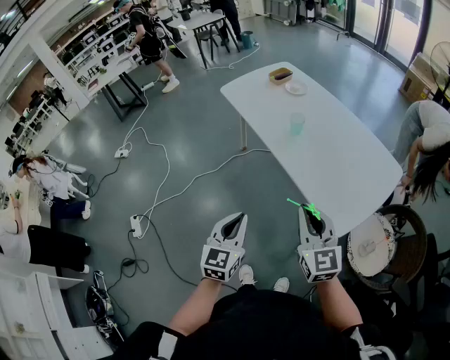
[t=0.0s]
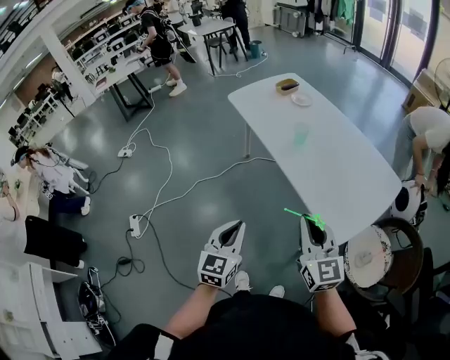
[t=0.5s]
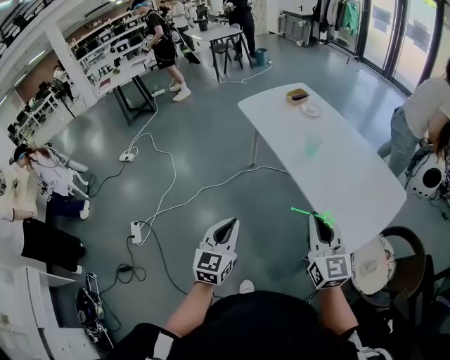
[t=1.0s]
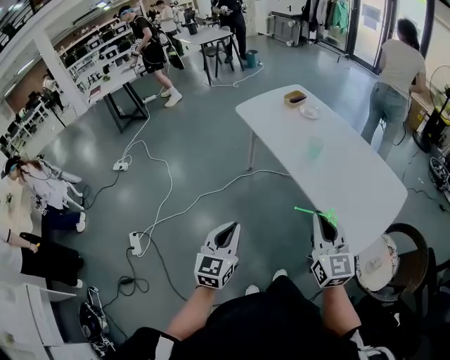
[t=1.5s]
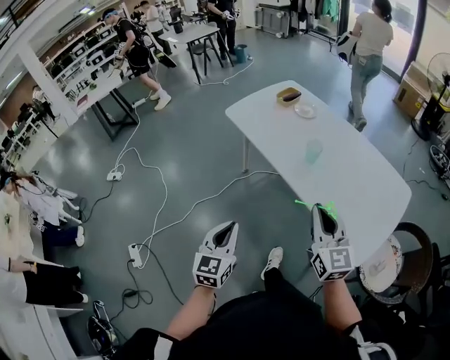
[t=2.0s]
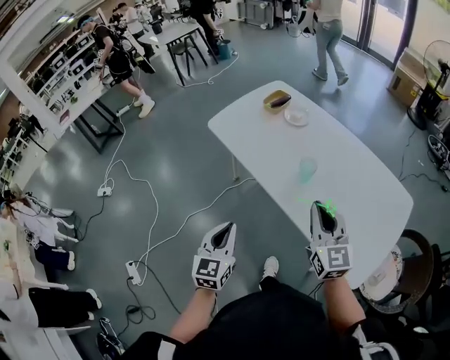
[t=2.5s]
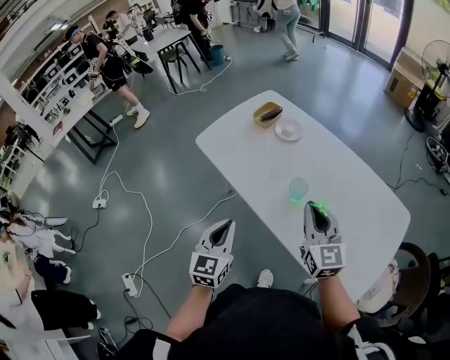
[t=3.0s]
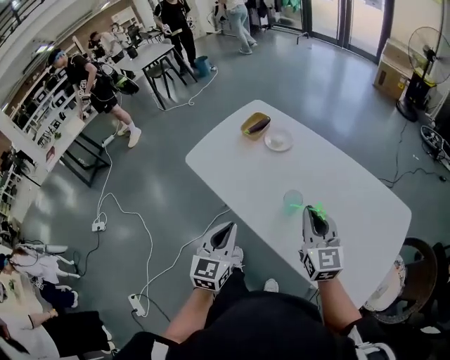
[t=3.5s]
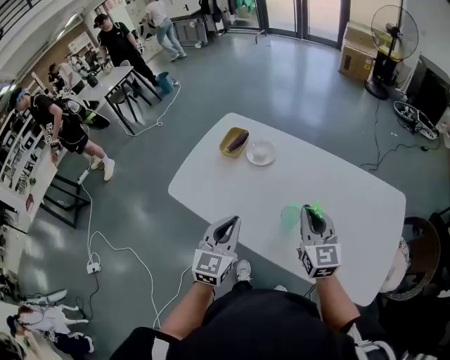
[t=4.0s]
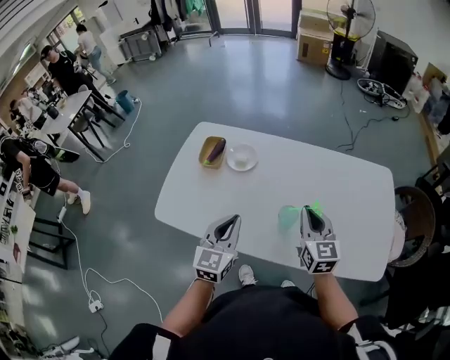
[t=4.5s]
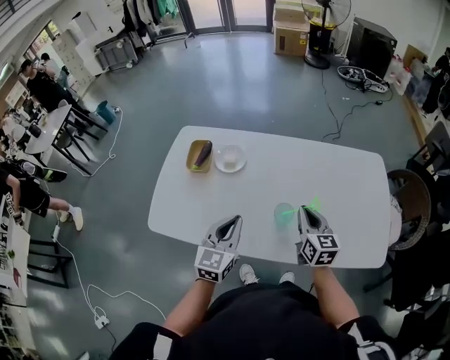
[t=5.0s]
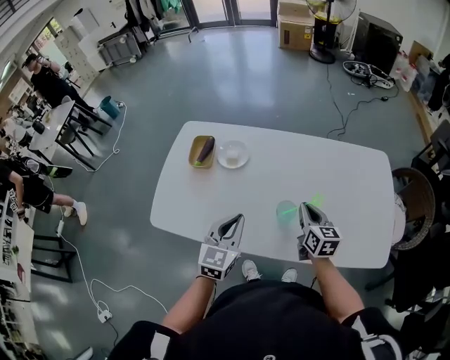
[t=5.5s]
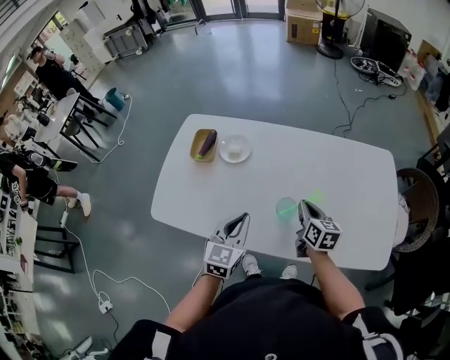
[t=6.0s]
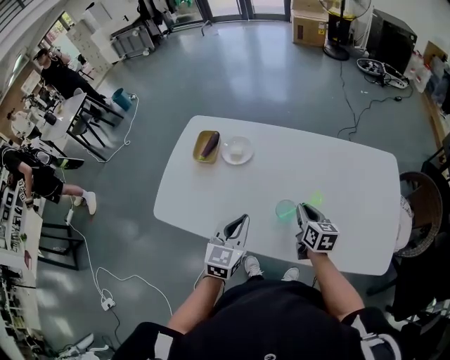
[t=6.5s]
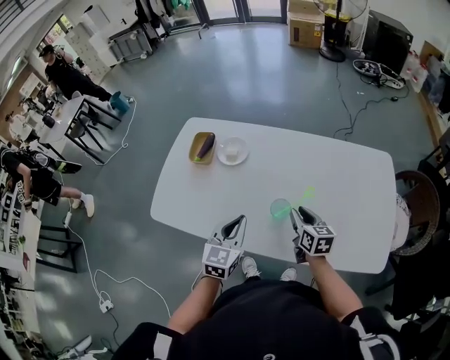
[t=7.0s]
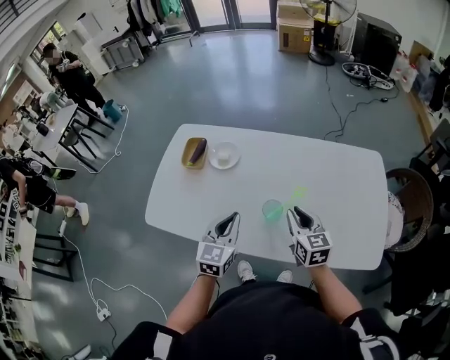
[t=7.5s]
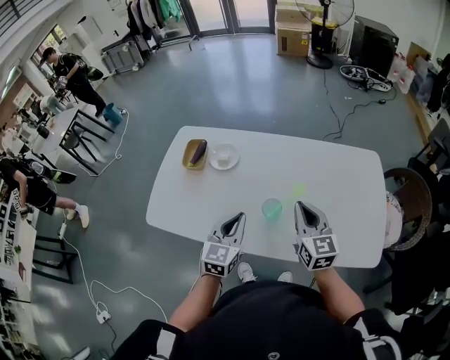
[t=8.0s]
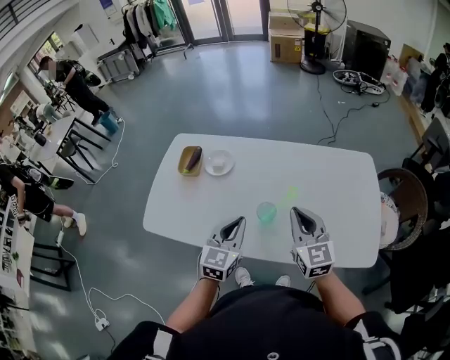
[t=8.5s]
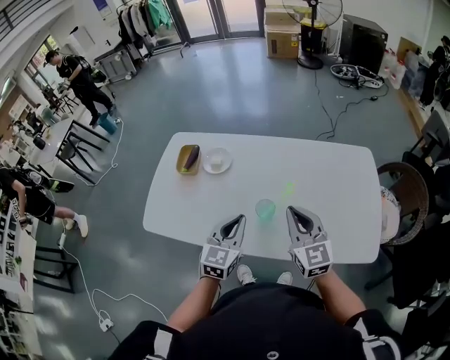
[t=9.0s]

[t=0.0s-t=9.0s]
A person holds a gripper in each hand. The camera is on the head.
t=0.0s to t=2.0s: The right gripper shifts some 15 cm forward and to the left. The left gripper travels to the left and forward by some 20 cm.
t=2.0s to t=4.5s: The left gripper changes place by roughly 50 cm, and swivels approximately 40 degrees, while the right gripper ends up some 40 cm from where it was, and turns by approximately 40 degrees.
t=4.5s to t=7.0s: The right gripper moves downward, approximately 15 cm, and swivels about 30 degrees. The left gripper shifts about 5 cm to the right.
t=7.0s to t=9.0s: The right gripper travels upward by about 15 cm, turns by about 40 degrees, and closes. Meanwhile the left gripper moves about 5 cm.

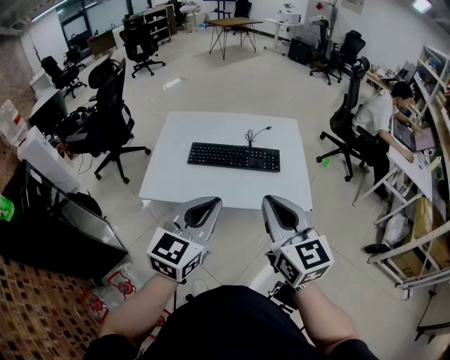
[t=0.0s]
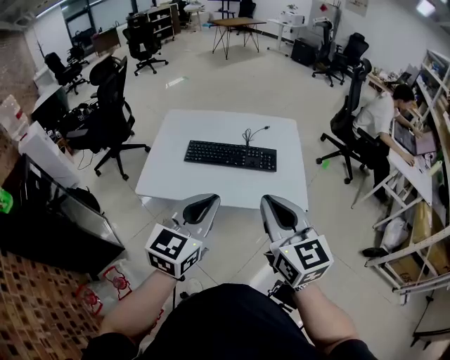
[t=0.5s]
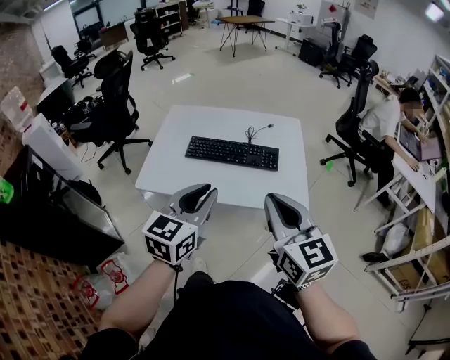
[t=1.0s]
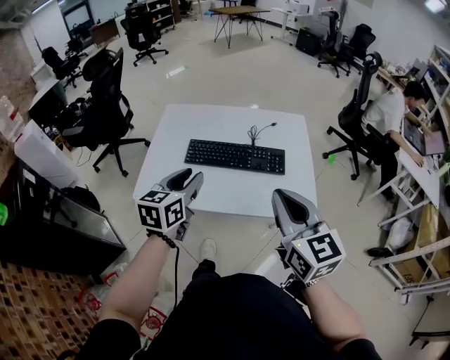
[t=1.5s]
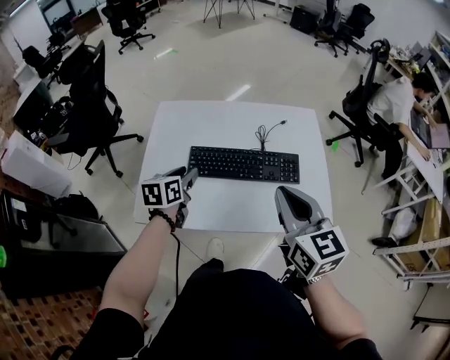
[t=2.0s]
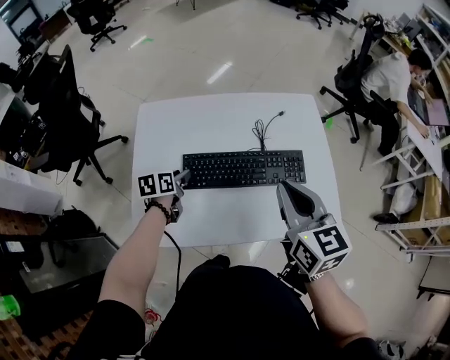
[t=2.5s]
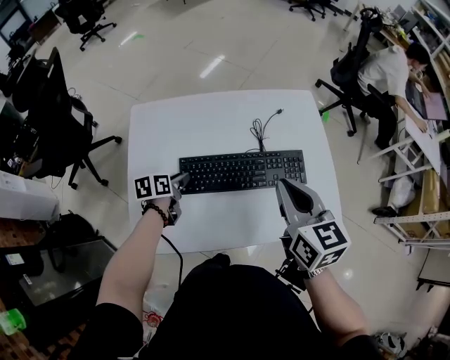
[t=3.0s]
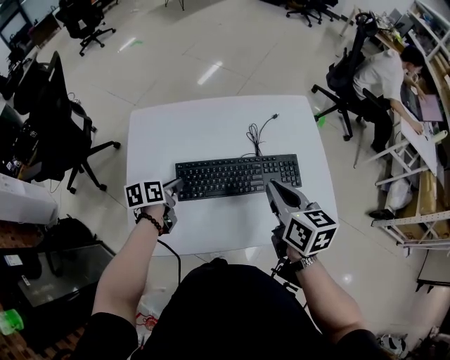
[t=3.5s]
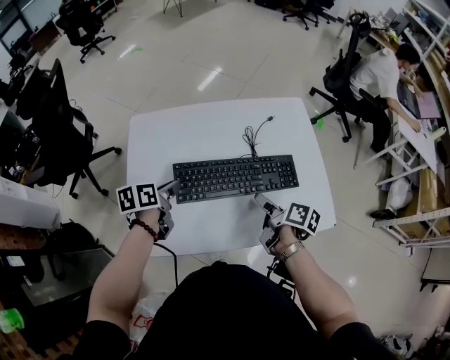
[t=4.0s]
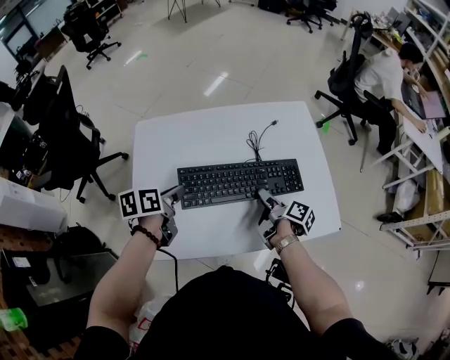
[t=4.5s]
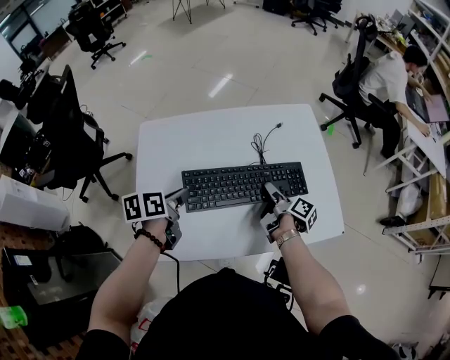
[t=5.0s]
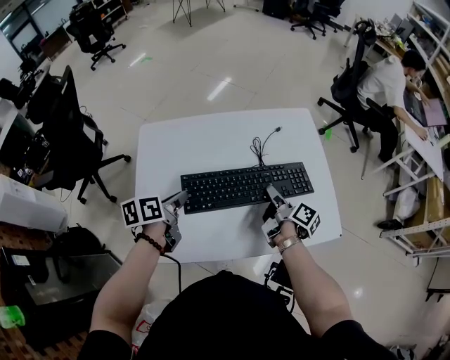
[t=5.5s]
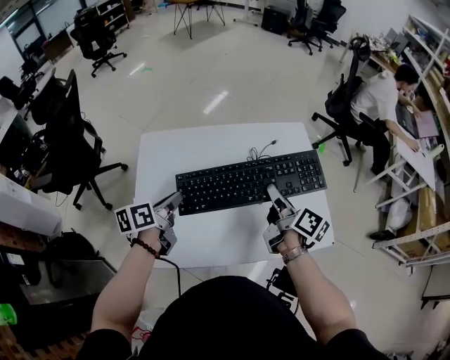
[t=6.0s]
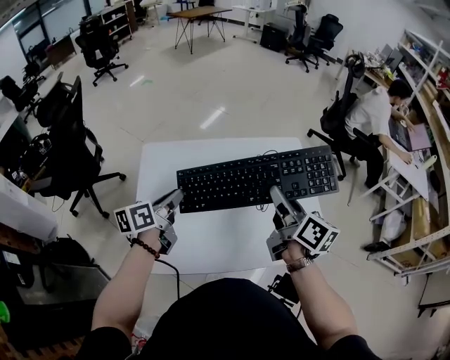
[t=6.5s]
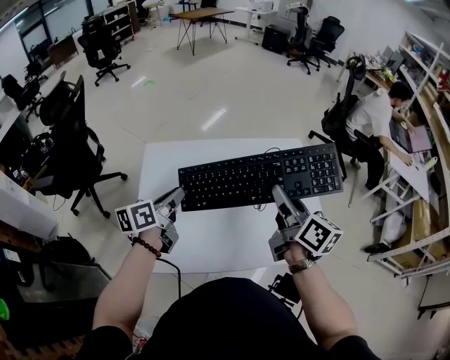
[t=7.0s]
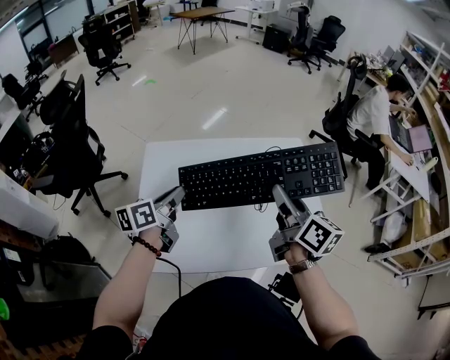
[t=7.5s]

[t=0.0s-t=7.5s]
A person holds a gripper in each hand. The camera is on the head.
t=0.0s to t=2.0s: The right gripper moves forward, approximately 20 cm, while the left gripper moves forward, downward and to the left, approximately 40 cm, swivels roughly 40 degrees, and opens.
t=2.0s to t=4.0s: The right gripper moves downward, roughly 25 cm, rolls clockwise, seen from behind, by some 60 degrees, and opens up. The left gripper is displaced forward by approximately 5 cm, travels downward and back again, some 15 cm each way, and turns by approximately 20 degrees.
t=4.0s to t=5.5s: The right gripper moves forward, roughly 5 cm.
t=5.5s to t=7.5s: The right gripper moves upward, some 25 cm, and turns by about 40 degrees; the left gripper travels upward by approximately 10 cm, and changes its angle by approximately 20 degrees.

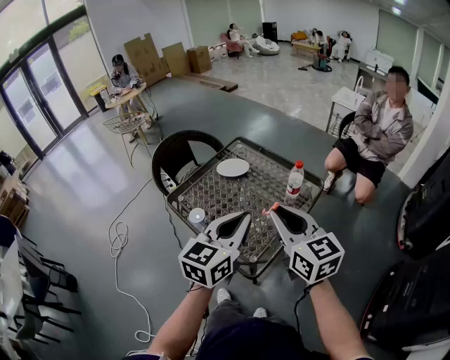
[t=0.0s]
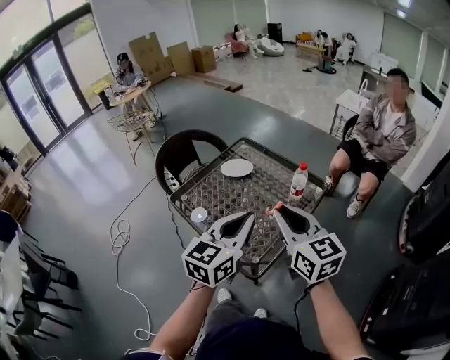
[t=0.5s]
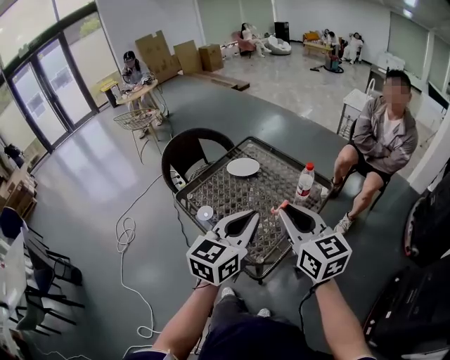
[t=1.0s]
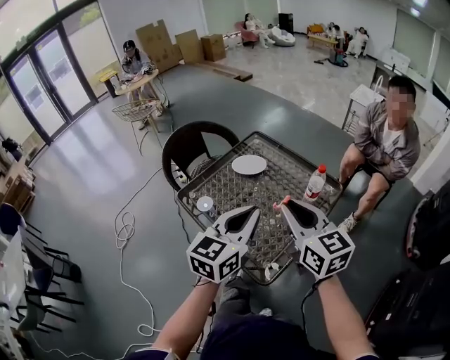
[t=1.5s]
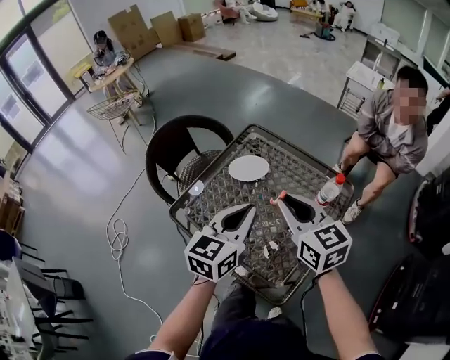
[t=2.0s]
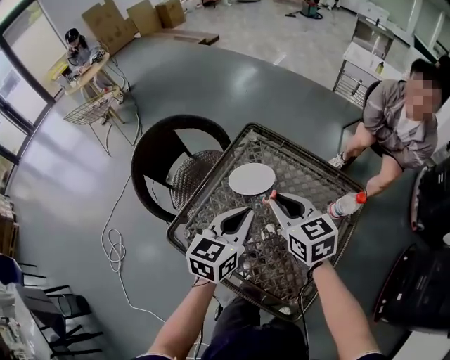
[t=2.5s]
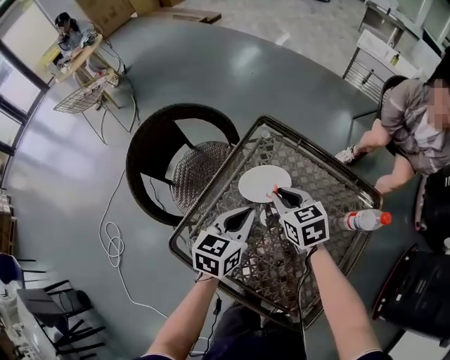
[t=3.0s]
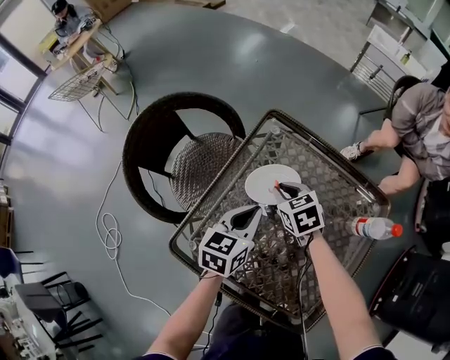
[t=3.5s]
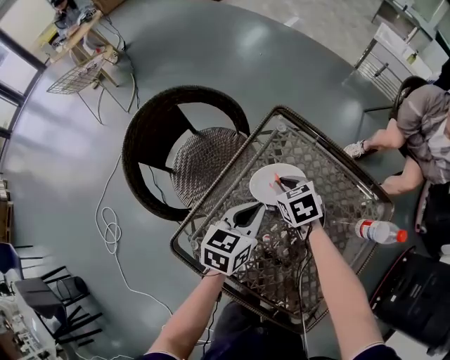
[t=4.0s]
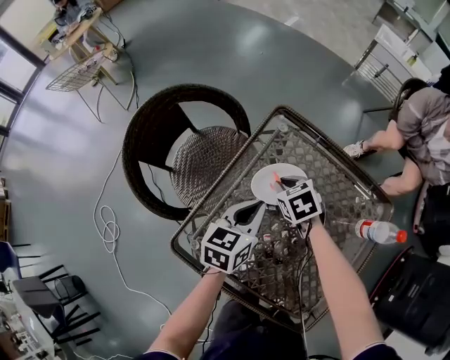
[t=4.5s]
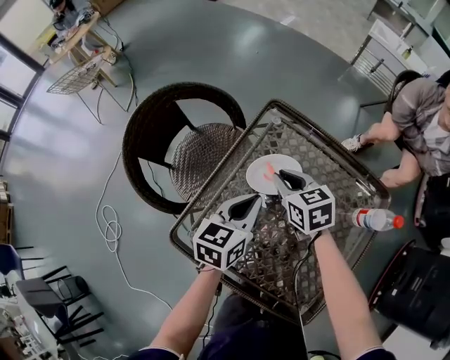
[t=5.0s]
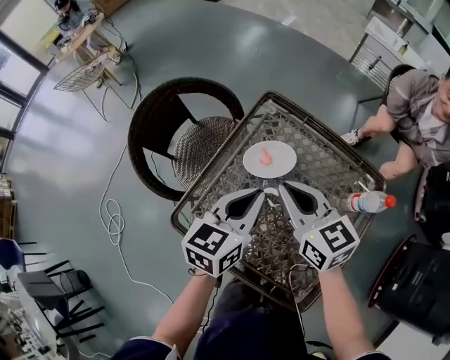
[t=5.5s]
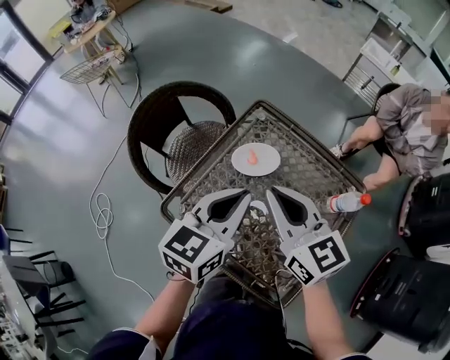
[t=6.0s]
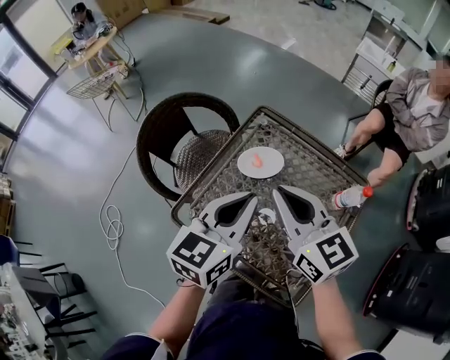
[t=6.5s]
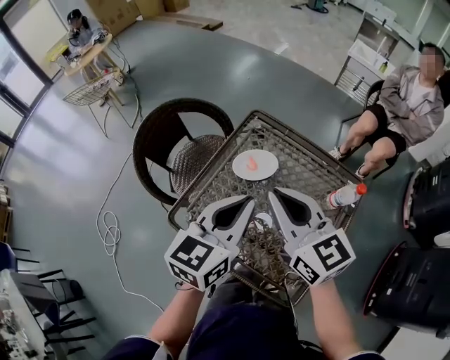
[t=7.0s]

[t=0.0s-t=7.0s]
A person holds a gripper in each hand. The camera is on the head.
t=0.0s to t=2.0s: The left gripper is displaced forward, to the left and downward by approximately 20 cm, while the right gripper shifts some 20 cm forward and to the left.
t=2.0s to t=3.5s: The right gripper goes some 35 cm downward and forward, and angles its fingers downward, by approximately 40 degrees, while the left gripper goes roughly 30 cm downward, forward and to the left.
t=3.5s to t=5.0s: The grippers stay close to where they were, moving slightly.
t=5.0s to t=7.0s: Both grippers travel together upward and backward, approximately 25 cm. The right gripper points its fingers approximately 30 degrees further upward.

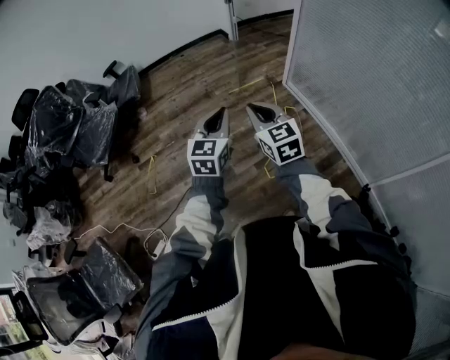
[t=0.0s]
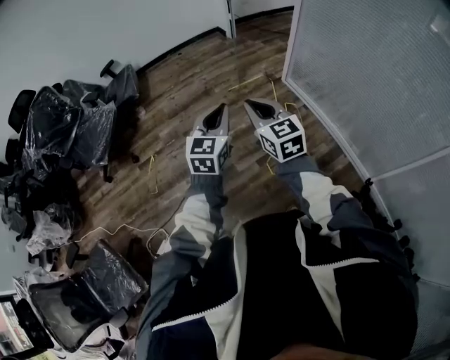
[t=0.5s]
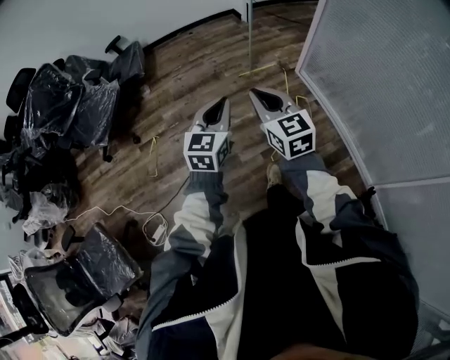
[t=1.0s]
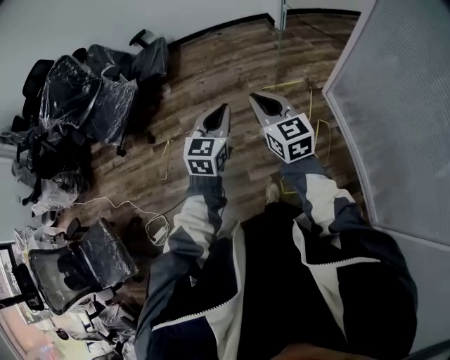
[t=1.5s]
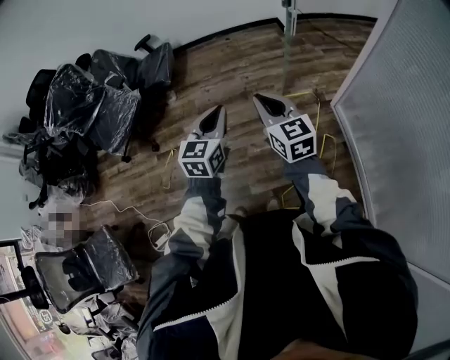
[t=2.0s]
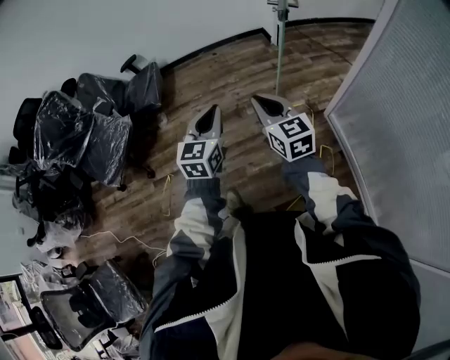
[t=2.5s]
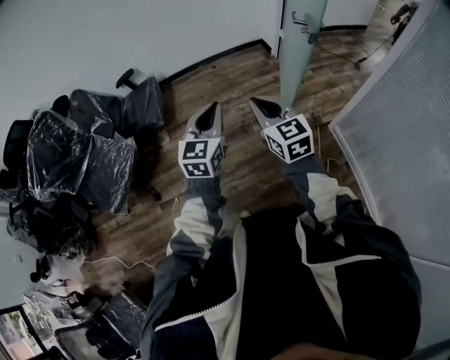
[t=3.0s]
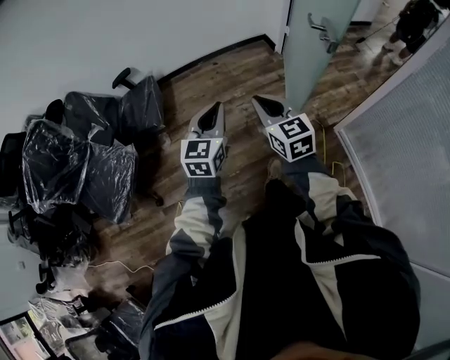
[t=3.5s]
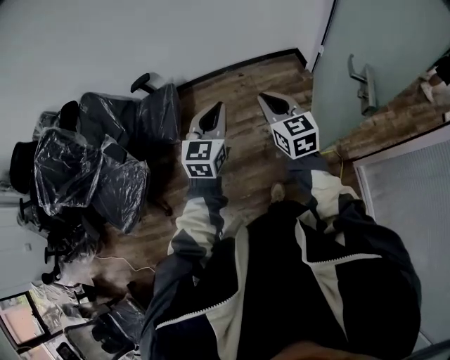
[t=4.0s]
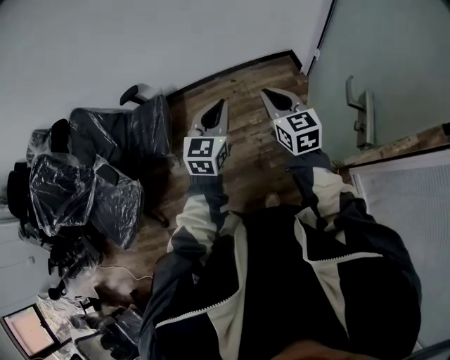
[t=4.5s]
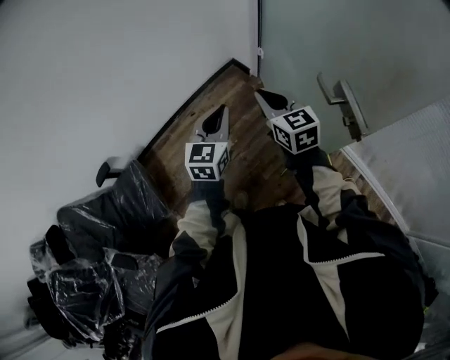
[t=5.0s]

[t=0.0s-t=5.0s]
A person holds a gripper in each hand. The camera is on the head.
t=0.0s to t=2.5s: Both grippers move forward, some 40 cm.
t=2.5s to t=5.0s: The pair of grippers is taken roughly 60 cm. The right gripper turns by about 20 degrees. The left gripper turns by approximately 30 degrees.
